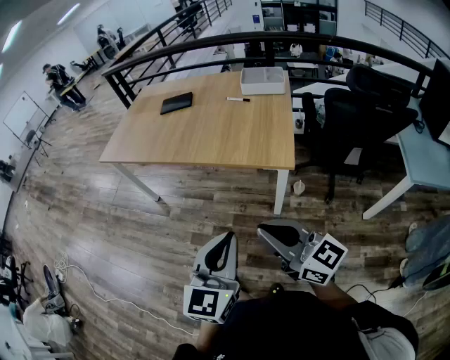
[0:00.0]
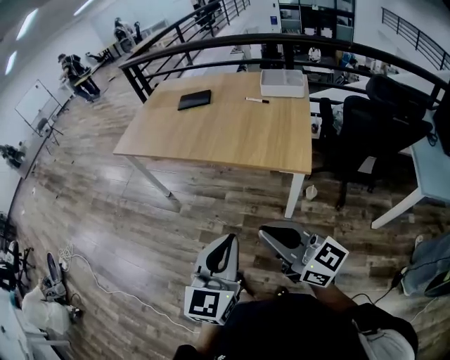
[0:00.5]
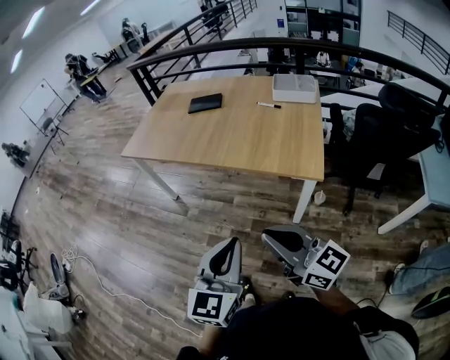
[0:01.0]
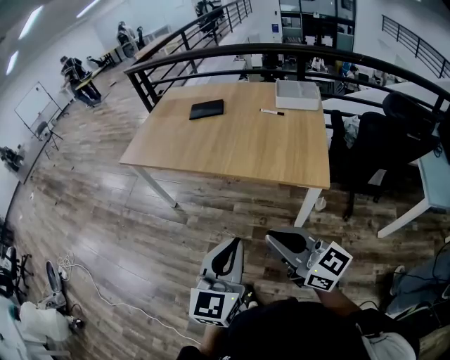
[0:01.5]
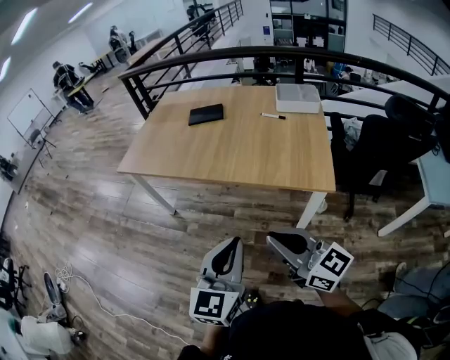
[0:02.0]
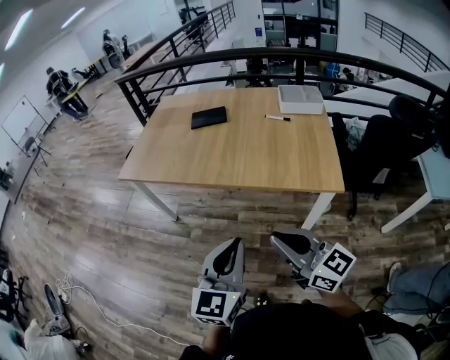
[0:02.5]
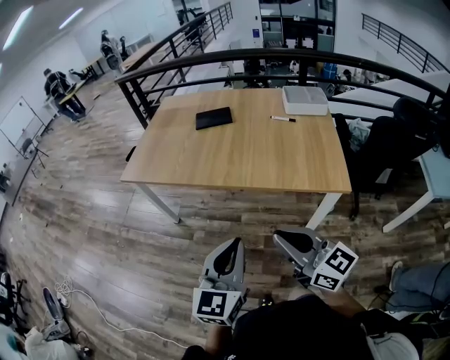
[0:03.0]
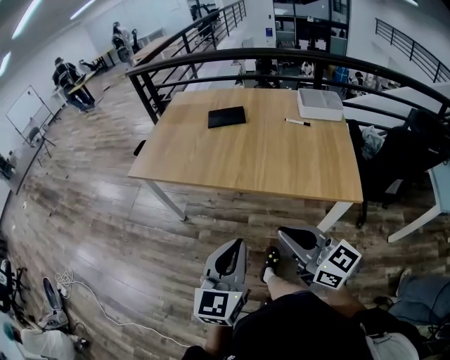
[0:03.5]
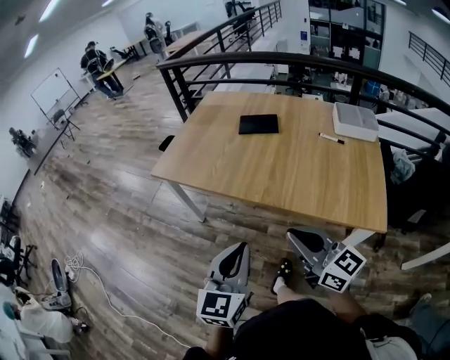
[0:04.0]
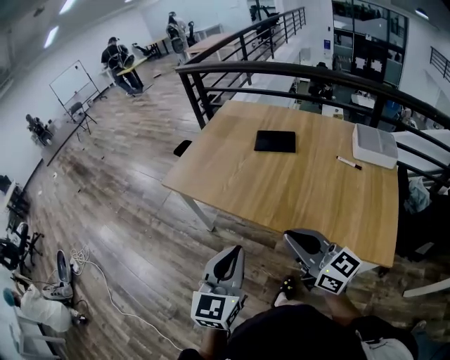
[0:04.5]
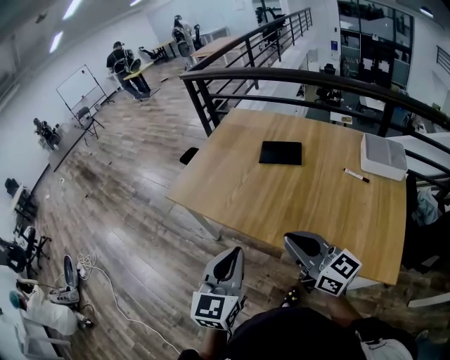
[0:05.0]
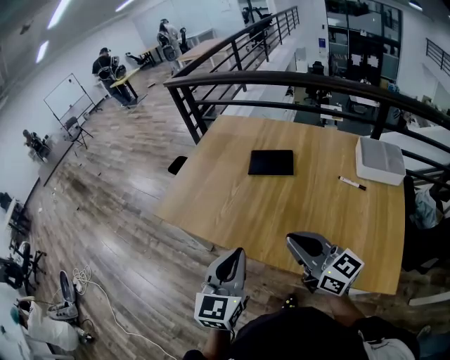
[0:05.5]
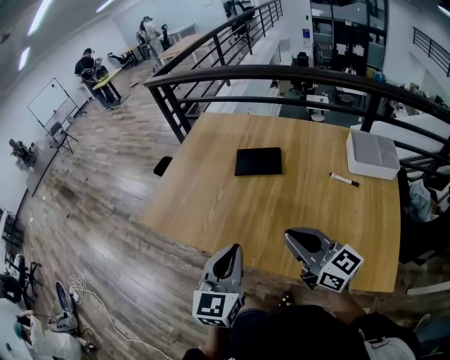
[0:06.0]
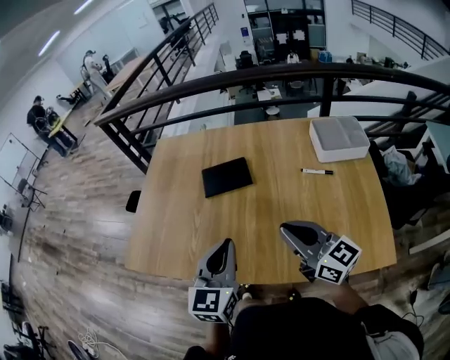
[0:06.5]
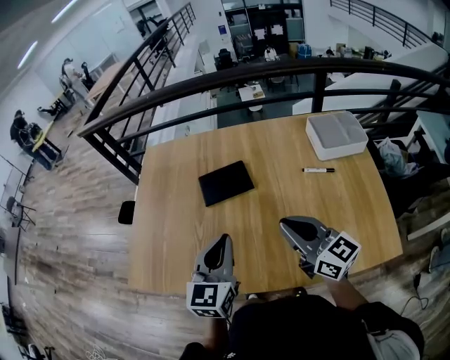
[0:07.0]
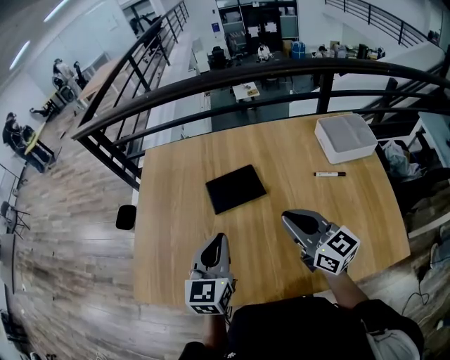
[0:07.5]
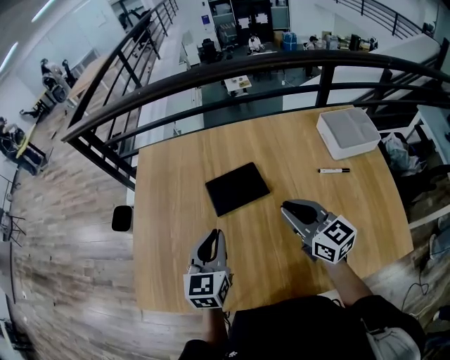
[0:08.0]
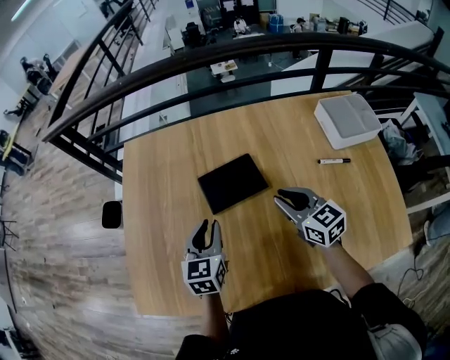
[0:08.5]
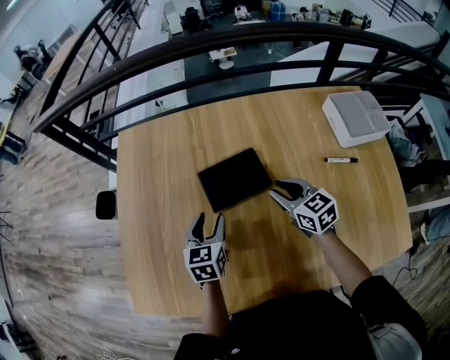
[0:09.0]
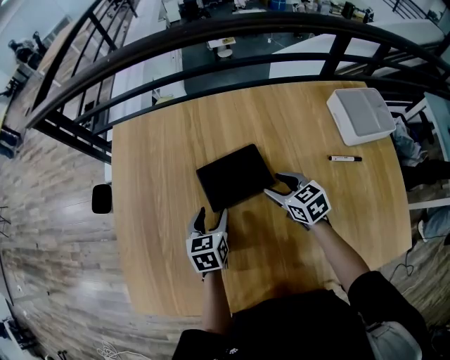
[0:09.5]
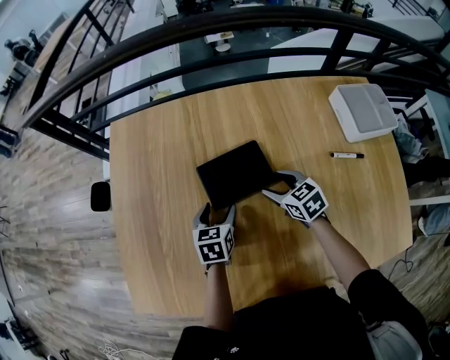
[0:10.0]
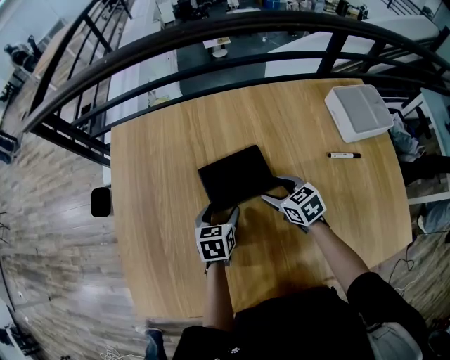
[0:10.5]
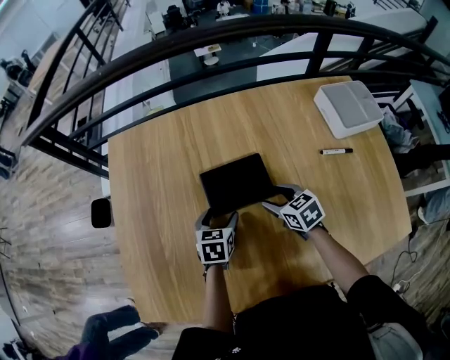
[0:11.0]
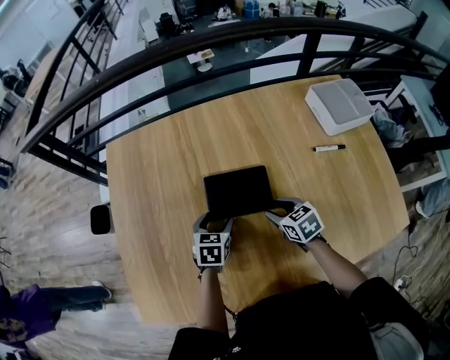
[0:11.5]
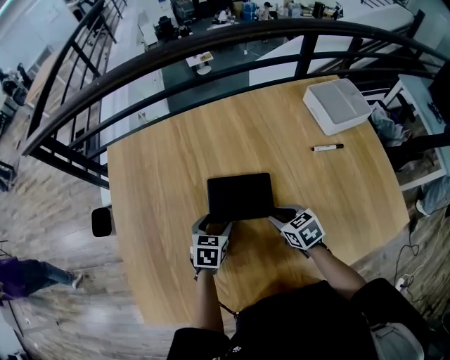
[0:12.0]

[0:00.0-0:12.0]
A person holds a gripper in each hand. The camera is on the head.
0:00.0 to 0:02.0: Both grippers travel together to the left and forward, some 20 cm.
0:02.0 to 0:04.0: Both grippers move forward and to the left, approximately 20 cm.
0:04.0 to 0:06.0: The left gripper shifts roughly 30 cm forward; the right gripper moves forward and to the right, about 30 cm.
0:06.0 to 0:08.0: The two grippers go approximately 30 cm forward. The right gripper changes its angle by roughly 30 degrees.
0:08.0 to 0:10.0: The grippers both shift downward and forward by some 25 cm. The right gripper tilts its fingers some 30 degrees downward, and opens up, while the left gripper swivels roughly 30 degrees, and opens.
0:10.0 to 0:12.0: The right gripper moves backward, approximately 10 cm, and closes. The left gripper swivels some 20 degrees.

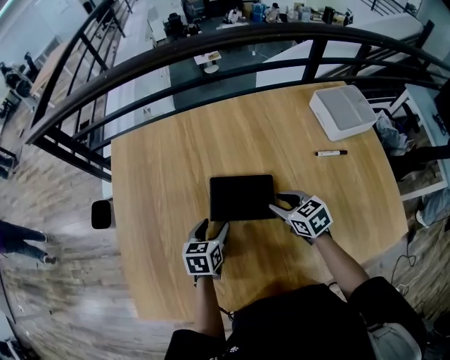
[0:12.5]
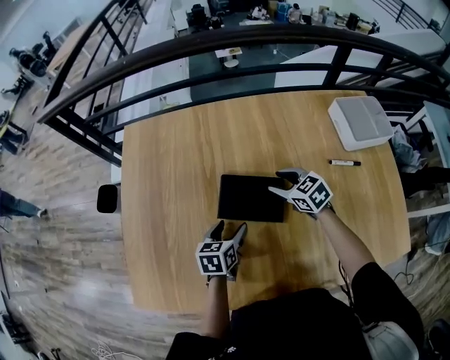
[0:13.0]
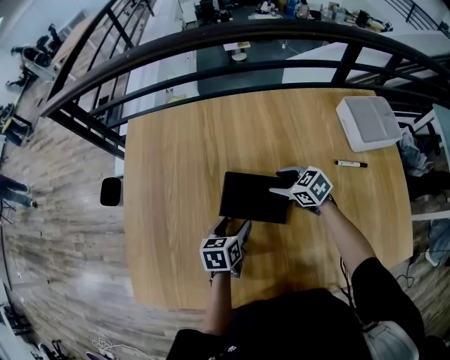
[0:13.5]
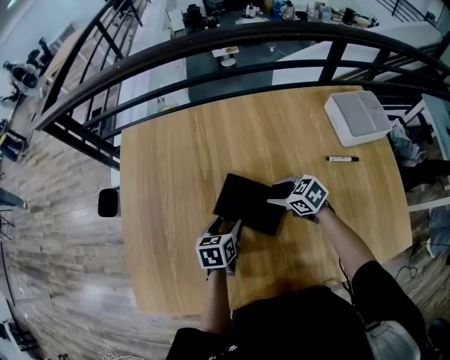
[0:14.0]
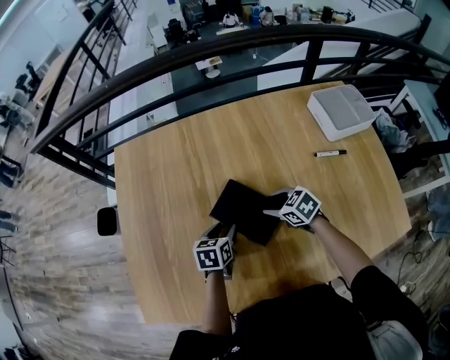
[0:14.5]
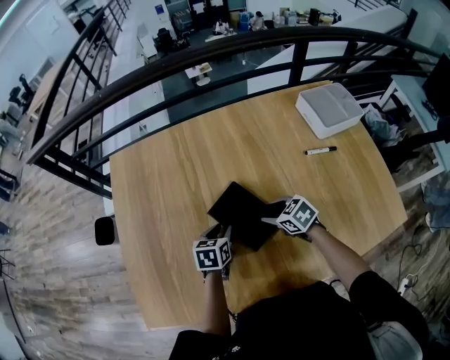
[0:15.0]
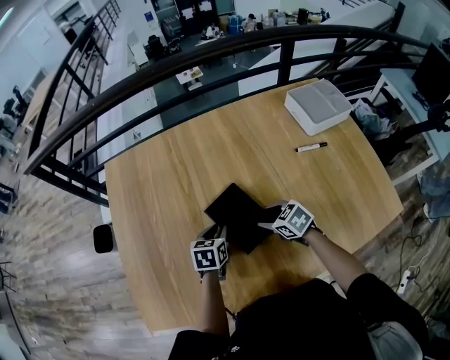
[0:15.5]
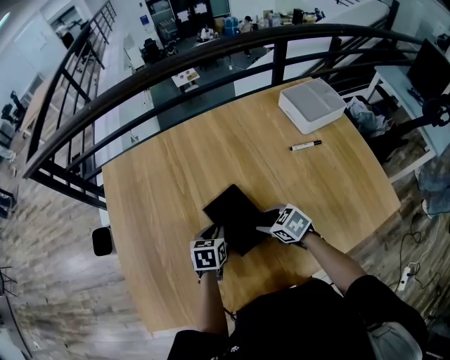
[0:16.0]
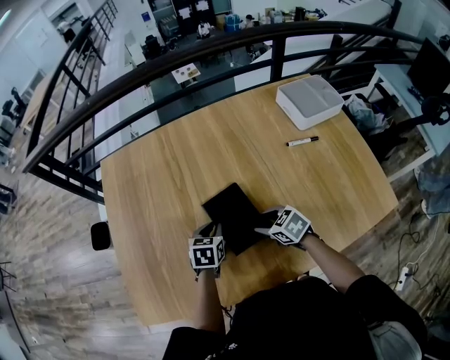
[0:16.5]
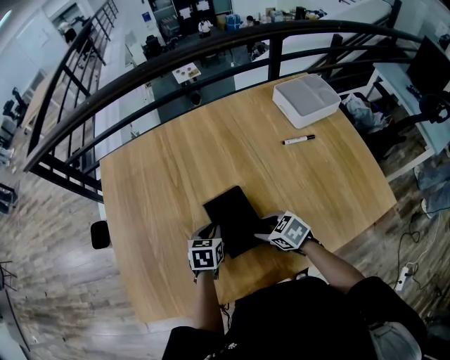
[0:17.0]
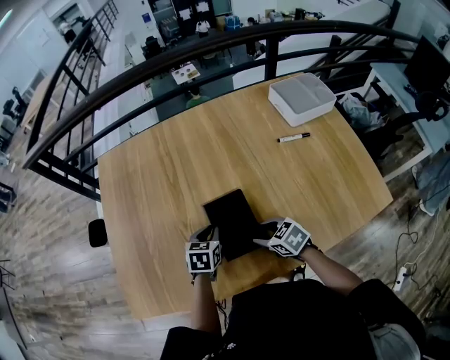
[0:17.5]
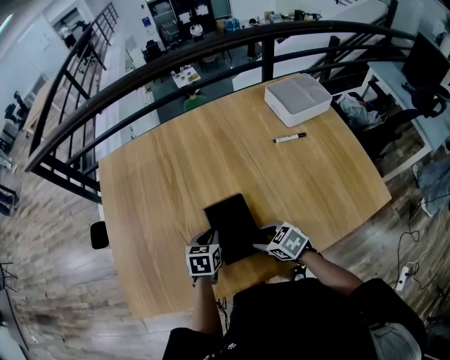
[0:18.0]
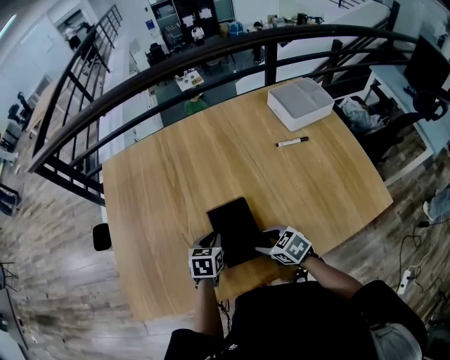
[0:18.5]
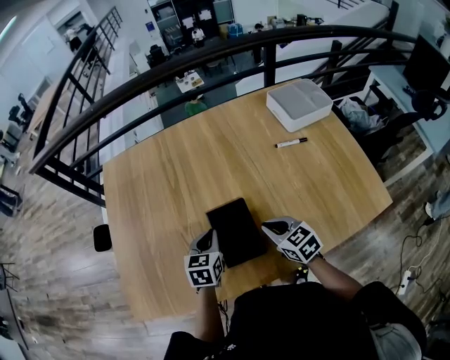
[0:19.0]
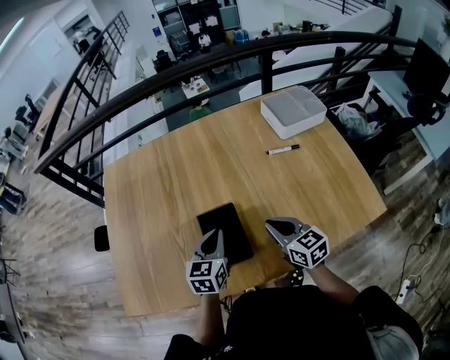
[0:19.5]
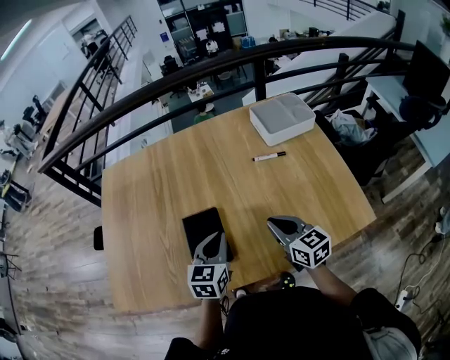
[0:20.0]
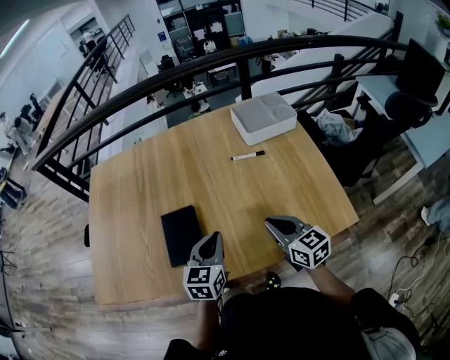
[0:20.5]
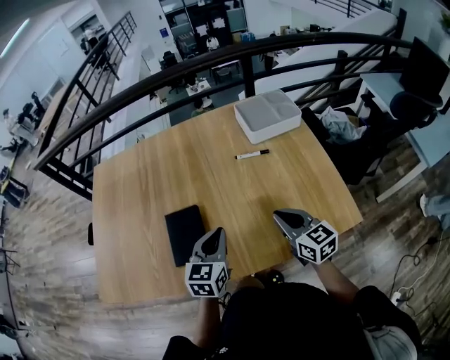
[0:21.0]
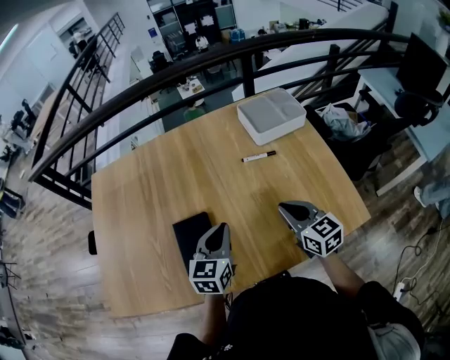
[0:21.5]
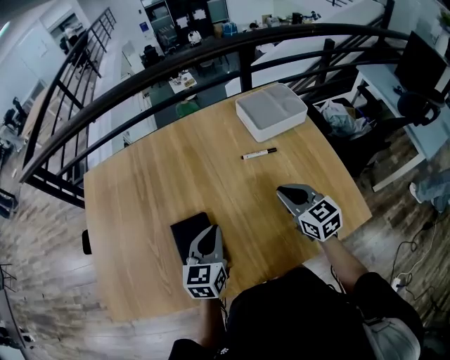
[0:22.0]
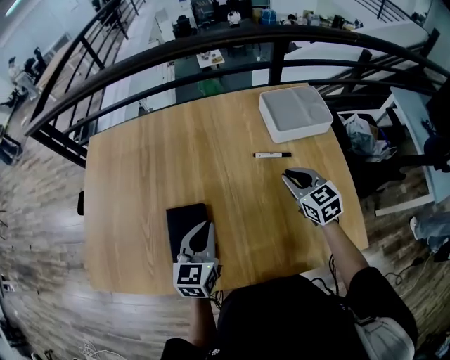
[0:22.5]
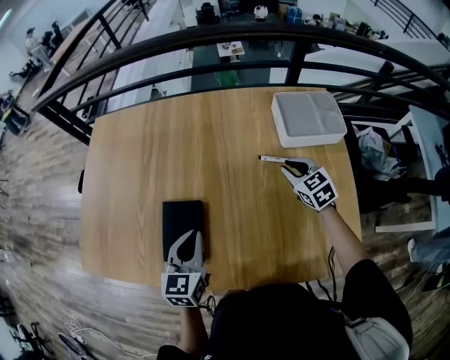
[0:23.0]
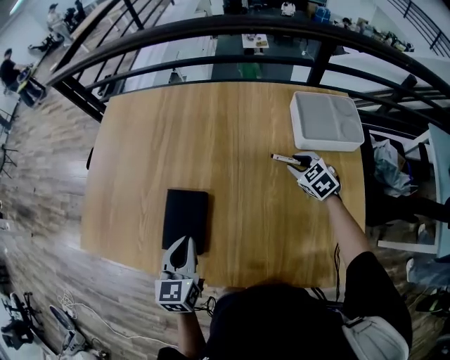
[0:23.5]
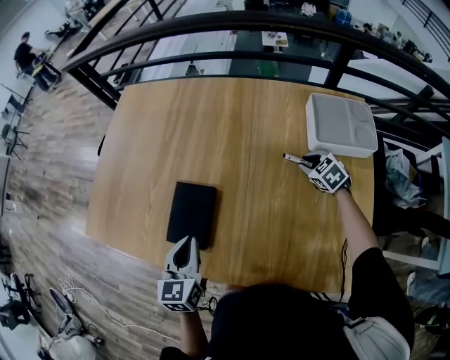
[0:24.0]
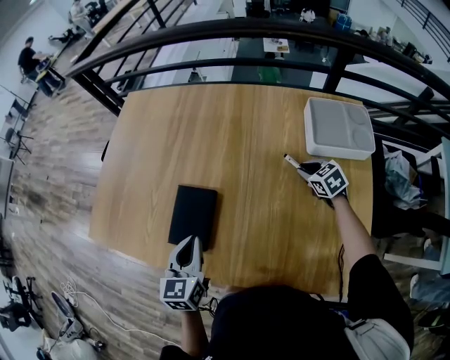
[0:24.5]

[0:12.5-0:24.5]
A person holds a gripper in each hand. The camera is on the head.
0:12.5 to 0:14.5: The right gripper reaches roughly 10 cm forward, then returns.
0:14.5 to 0:16.5: The right gripper goes roughly 10 cm backward. Meanwhile the left gripper closes its fingers.
0:16.5 to 0:18.5: Both grippers travel together backward, some 10 cm.
0:18.5 to 0:20.5: The left gripper heads to the right, upward and backward, covering about 30 cm, and turns by about 30 degrees; the right gripper heads to the right and upward, covering approximately 30 cm, turns by about 40 degrees, and closes up.
0:20.5 to 0:22.5: The left gripper shifts approximately 10 cm forward and to the left. The right gripper goes roughly 20 cm forward, and changes its angle by about 20 degrees.
0:22.5 to 0:24.5: The left gripper travels to the left by roughly 5 cm, and turns by roughly 30 degrees. Meanwhile the right gripper moves downward and forward, about 15 cm, and changes its angle by about 30 degrees.

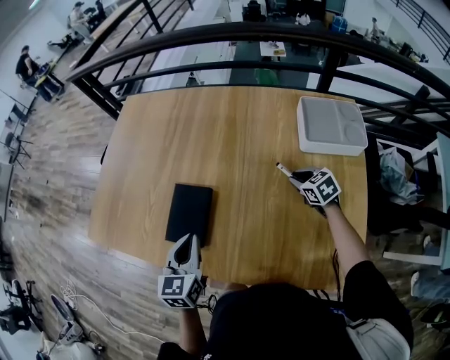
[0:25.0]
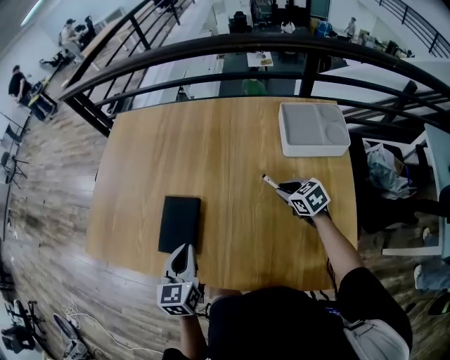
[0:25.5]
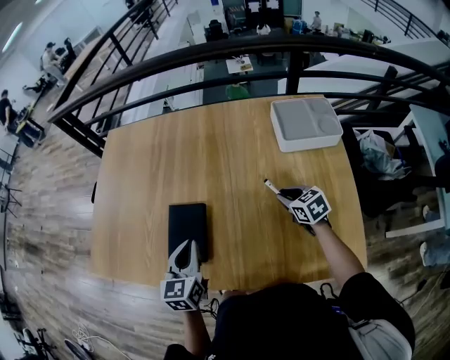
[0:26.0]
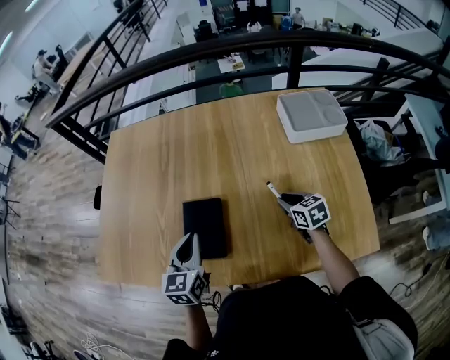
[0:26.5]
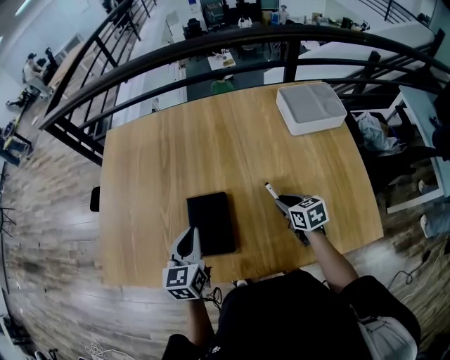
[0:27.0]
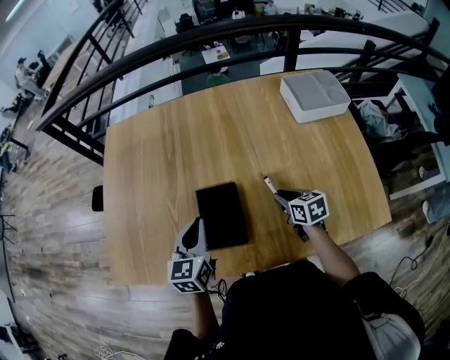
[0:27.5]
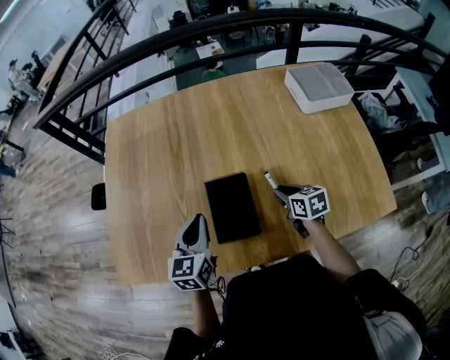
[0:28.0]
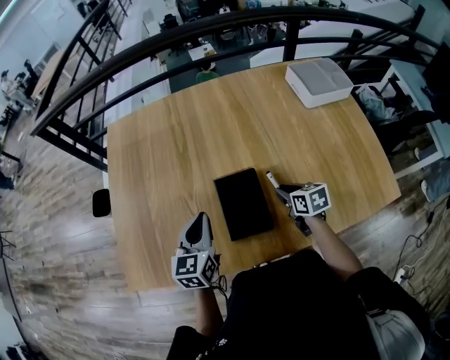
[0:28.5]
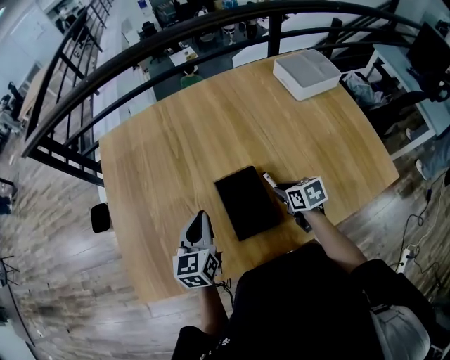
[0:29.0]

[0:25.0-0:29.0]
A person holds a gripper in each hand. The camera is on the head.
0:25.0 to 0:27.0: The left gripper moves to the left and forward, approximately 10 cm; the right gripper travels to the left and backward by approximately 15 cm, and changes its angle by roughly 30 degrees.
0:27.0 to 0:29.0: Both grippers move to the left, about 15 cm.
